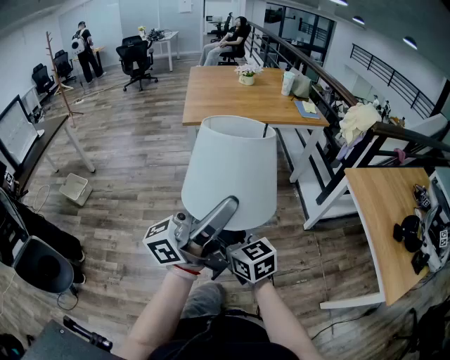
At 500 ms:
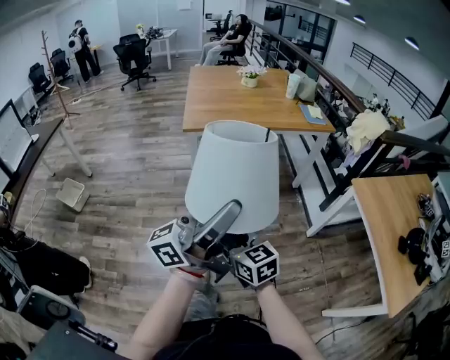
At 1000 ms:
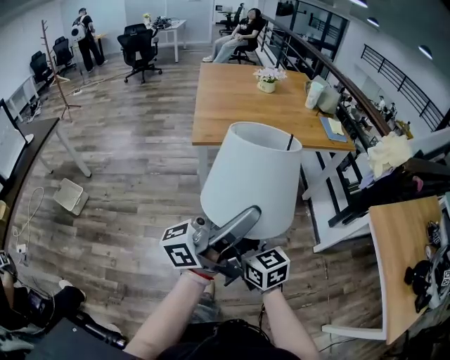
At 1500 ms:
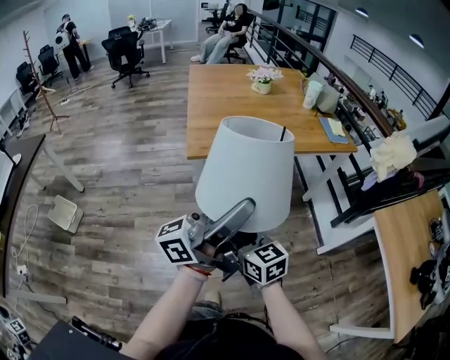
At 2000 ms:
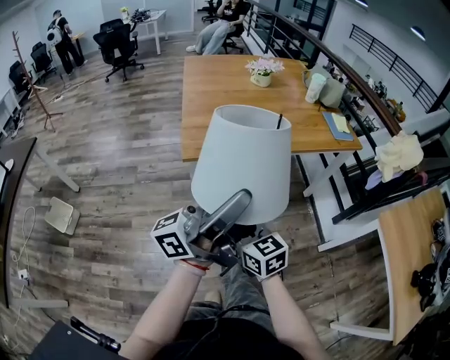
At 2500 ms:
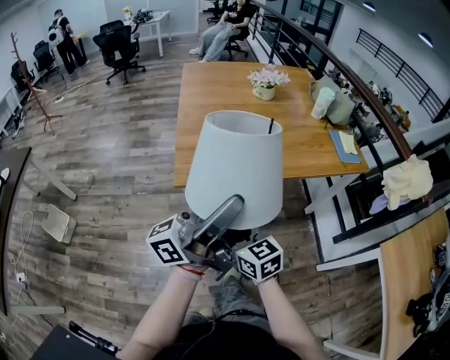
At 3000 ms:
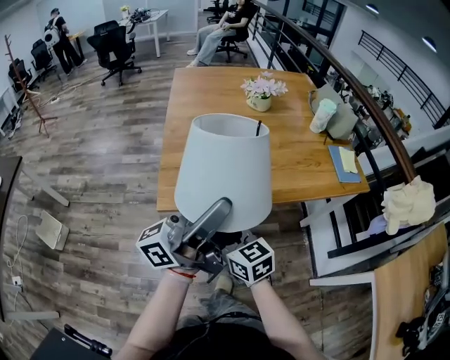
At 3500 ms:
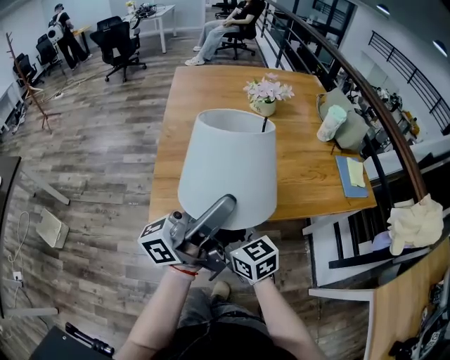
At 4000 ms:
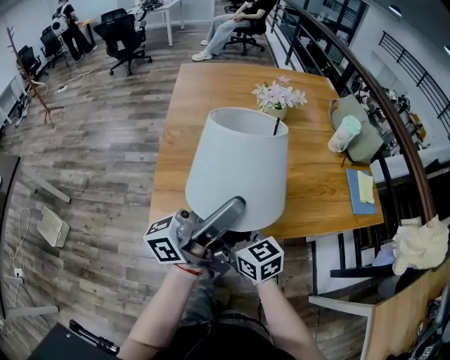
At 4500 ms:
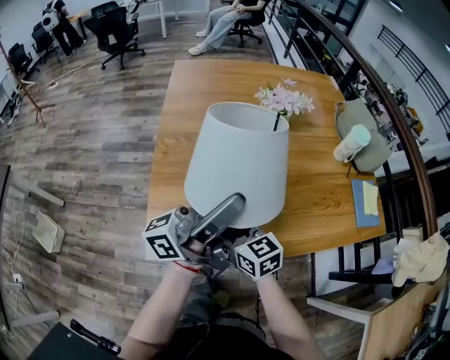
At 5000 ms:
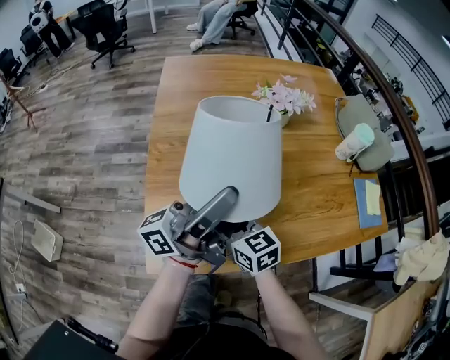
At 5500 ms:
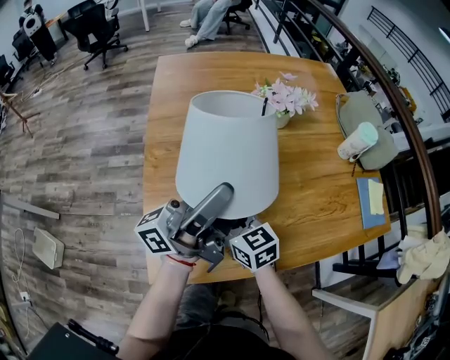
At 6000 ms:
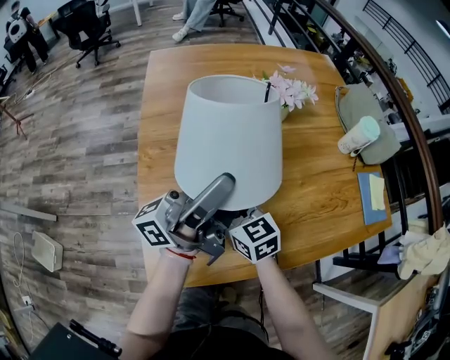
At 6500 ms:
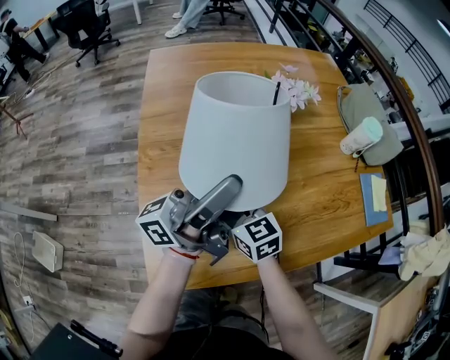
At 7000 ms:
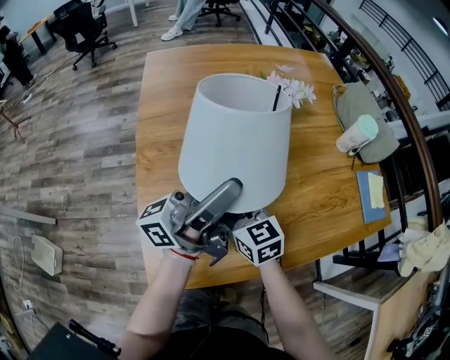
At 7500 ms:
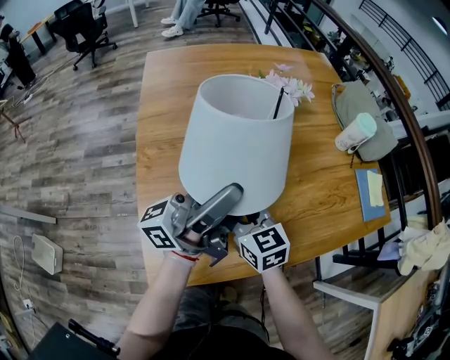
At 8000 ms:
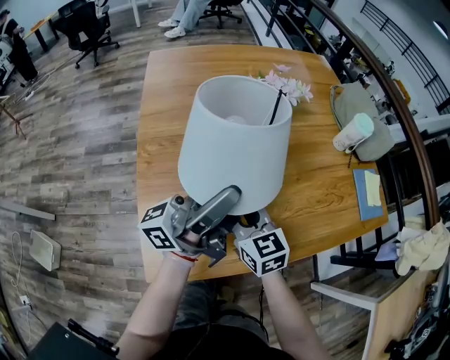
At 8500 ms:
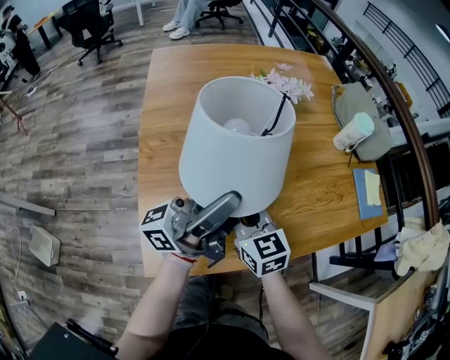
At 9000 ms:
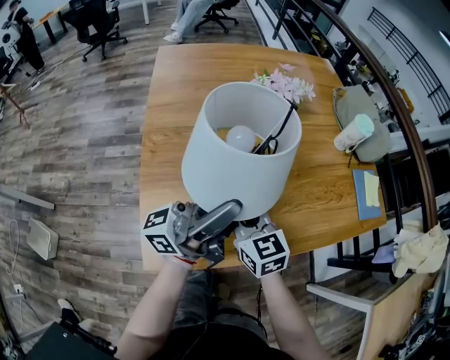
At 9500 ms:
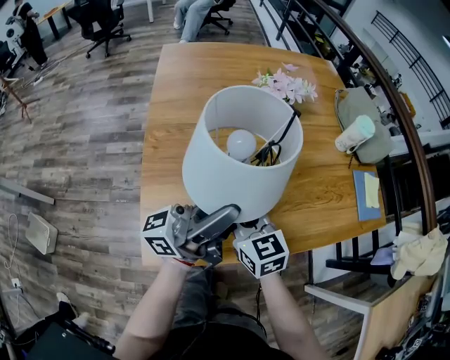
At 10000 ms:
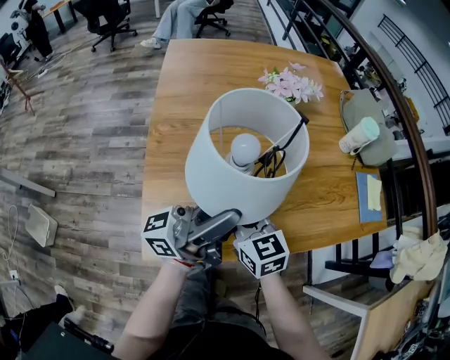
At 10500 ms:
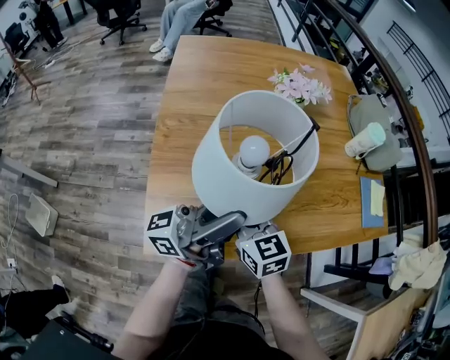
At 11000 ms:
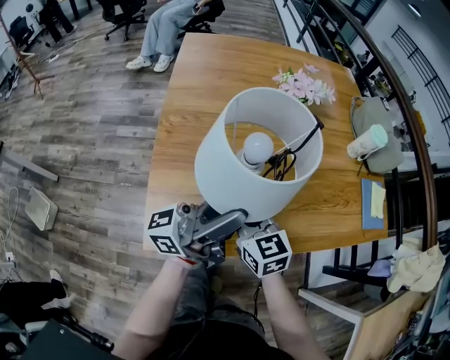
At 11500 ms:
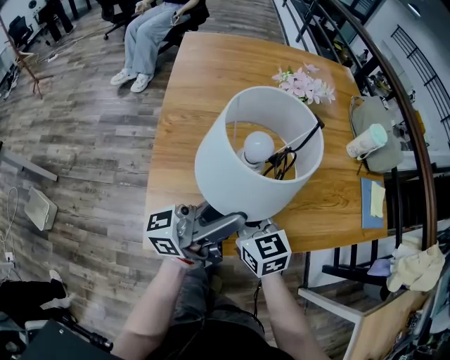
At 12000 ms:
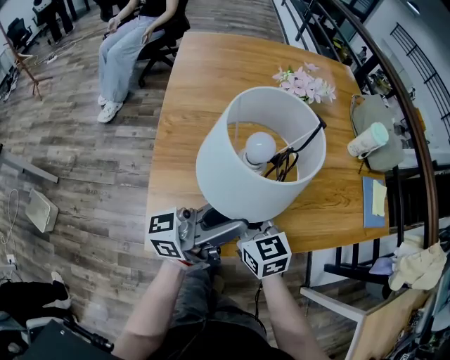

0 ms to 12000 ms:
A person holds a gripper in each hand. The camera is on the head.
0 ms to 2000 ms: The left gripper moves forward and to the left, about 40 cm. The right gripper is displaced forward by about 35 cm.
2000 ms to 4000 ms: Both grippers move forward, about 35 cm.
4000 ms to 6000 ms: Both grippers travel together forward, approximately 20 cm.
6000 ms to 8000 ms: The right gripper shifts by approximately 5 cm, and closes its fingers.
8000 ms to 10000 ms: The left gripper goes some 5 cm backward.
10000 ms to 12000 ms: The grippers stay close to where they were, moving slightly.

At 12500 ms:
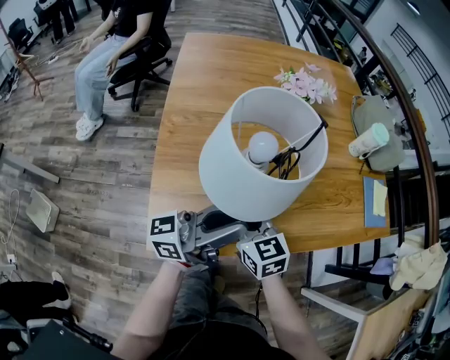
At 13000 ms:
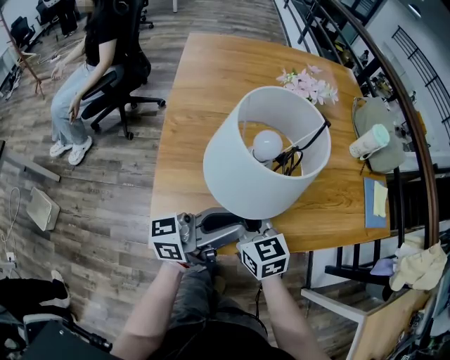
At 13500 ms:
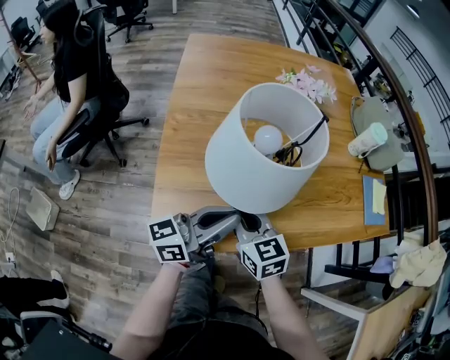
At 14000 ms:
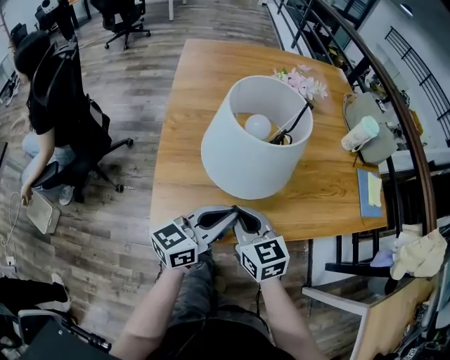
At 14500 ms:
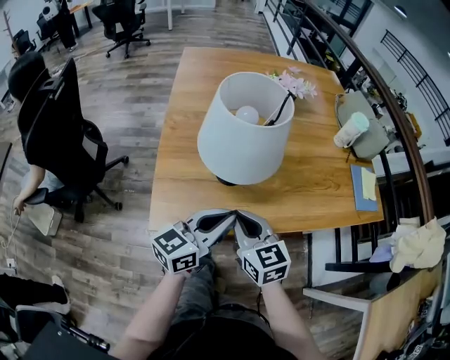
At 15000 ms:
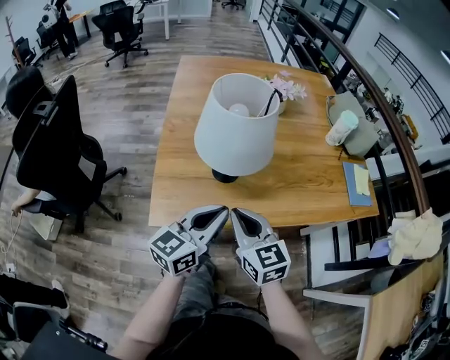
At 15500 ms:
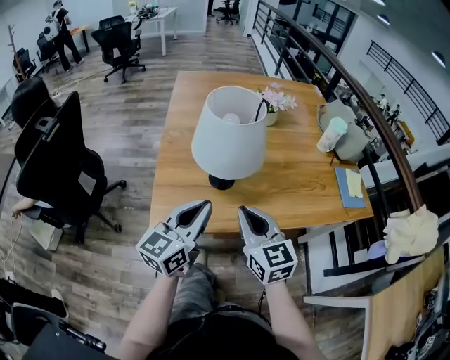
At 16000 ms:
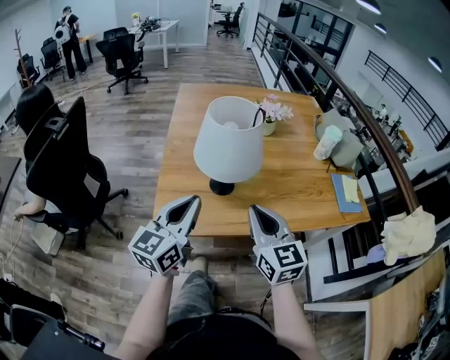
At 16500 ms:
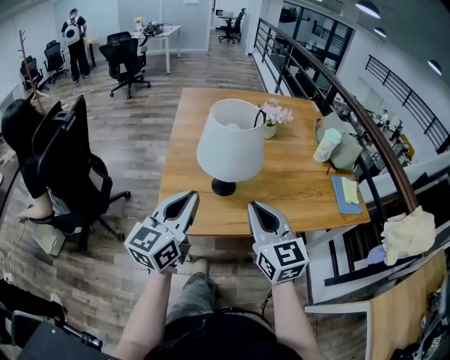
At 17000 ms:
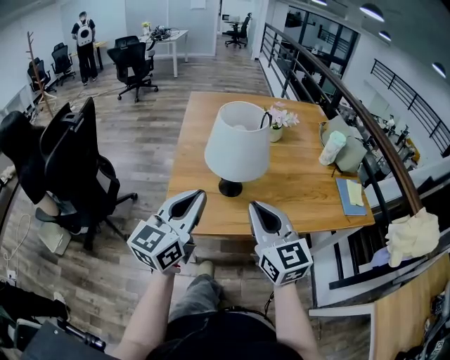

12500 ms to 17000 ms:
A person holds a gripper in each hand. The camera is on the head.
12500 ms to 14500 ms: The left gripper travels backward and downward by some 10 cm, turns by approximately 40 degrees, and closes up. The right gripper heads backward, covering about 10 cm.
14500 ms to 17000 ms: The right gripper heads upward, covering some 15 cm, and rotates approximately 20 degrees, while the left gripper is displaced upward and to the left by about 15 cm, and turns by roughly 30 degrees.

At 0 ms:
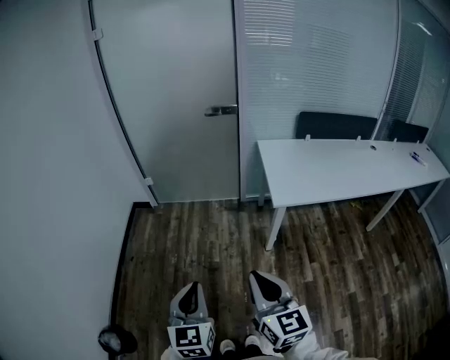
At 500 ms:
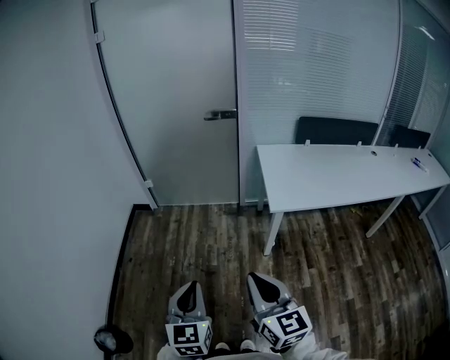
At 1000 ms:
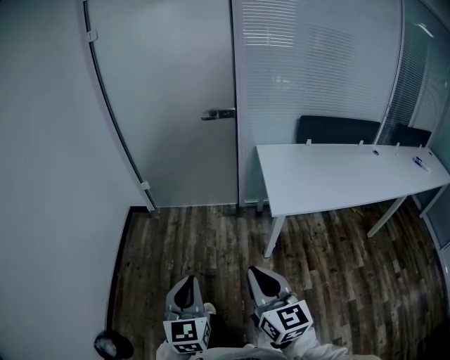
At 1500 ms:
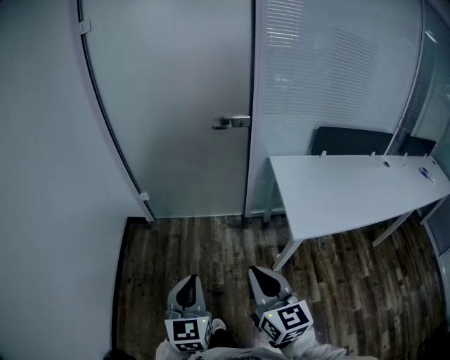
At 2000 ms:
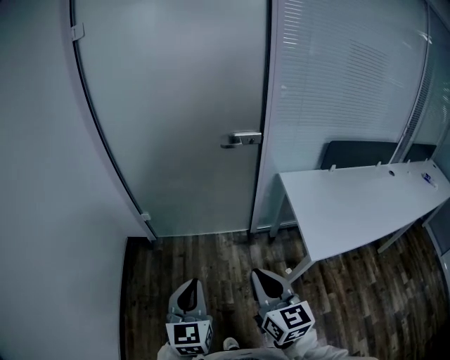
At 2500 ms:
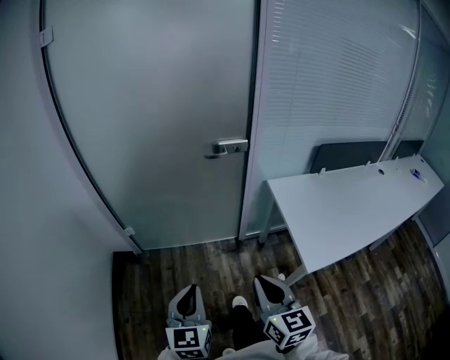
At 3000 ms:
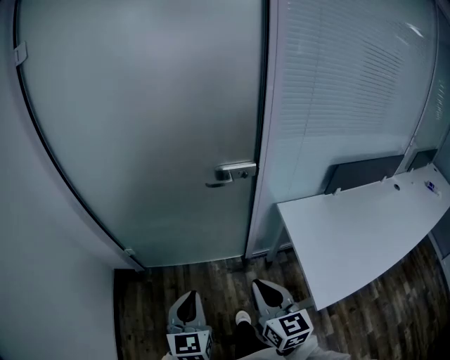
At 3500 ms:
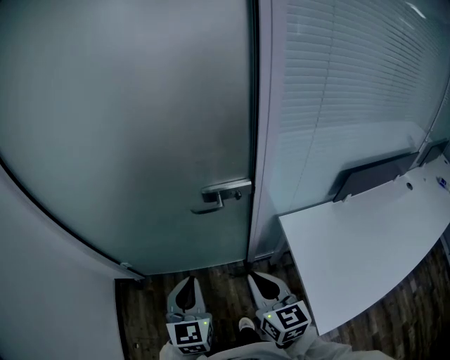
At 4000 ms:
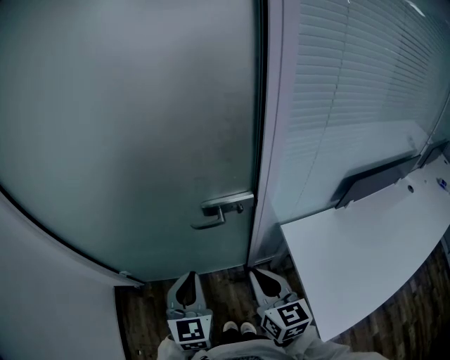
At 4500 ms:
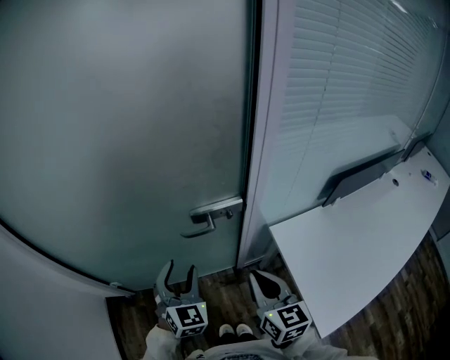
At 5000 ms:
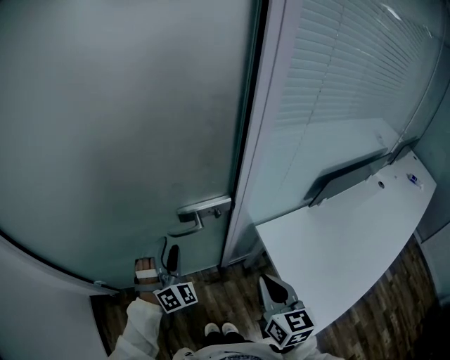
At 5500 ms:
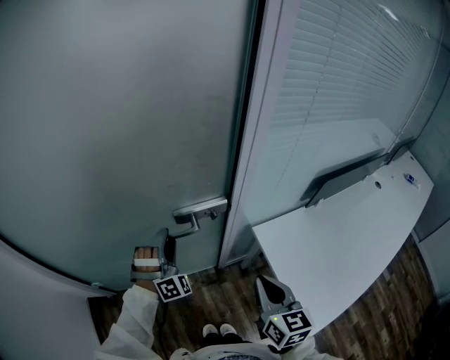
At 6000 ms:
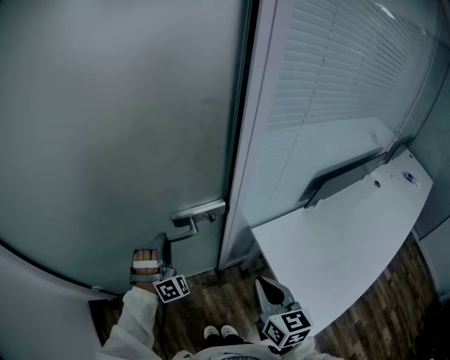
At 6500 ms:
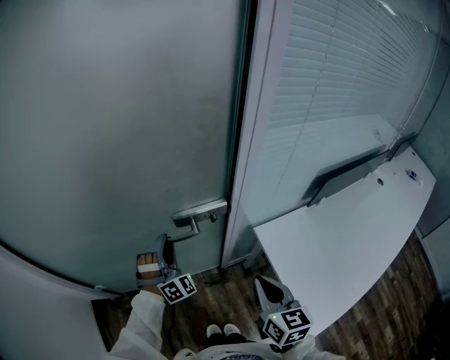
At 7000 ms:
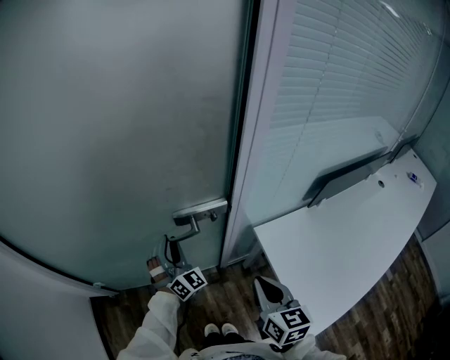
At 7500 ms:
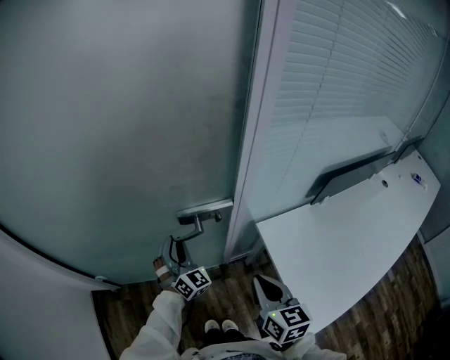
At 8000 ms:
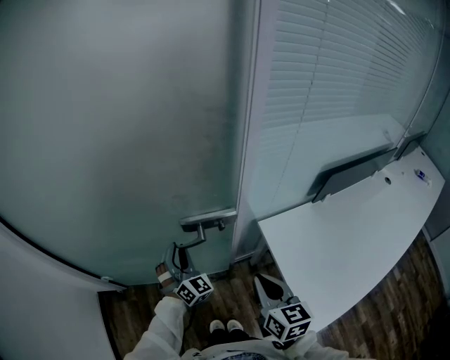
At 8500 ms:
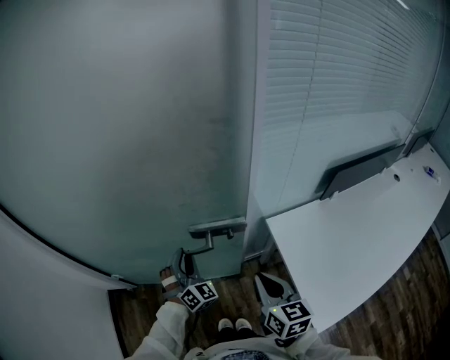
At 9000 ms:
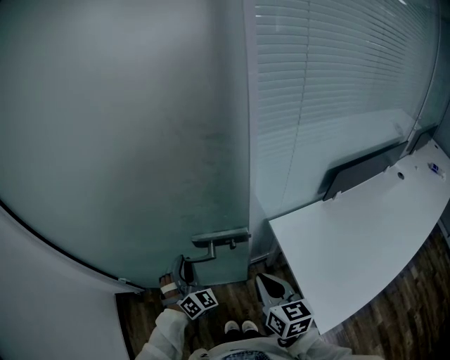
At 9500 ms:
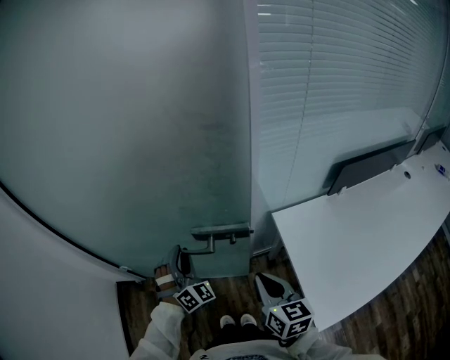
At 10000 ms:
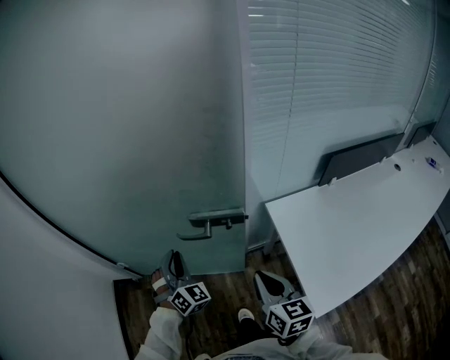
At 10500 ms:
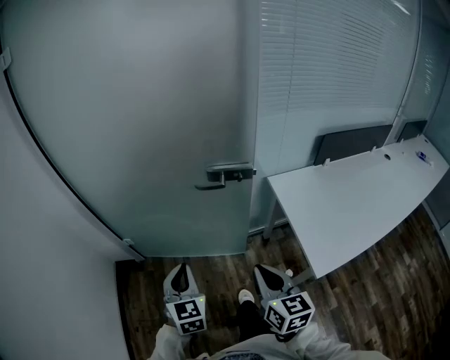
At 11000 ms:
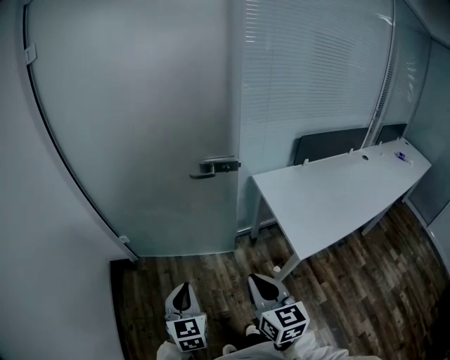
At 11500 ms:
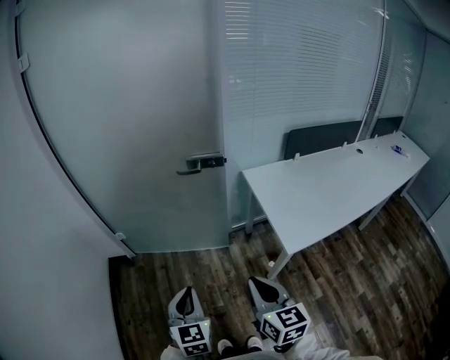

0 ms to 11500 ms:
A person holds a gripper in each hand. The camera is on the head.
0 ms to 2000 ms: The grippers both shift forward by some 35 cm.
2000 ms to 4000 ms: The pair of grippers is taken forward, some 50 cm.
4000 ms to 6000 ms: The left gripper travels forward and downward by about 20 cm, rolls clockwise, seen from behind, by some 70 degrees, and opens. The right gripper goes roughly 5 cm to the right.
6000 ms to 7500 ms: The left gripper changes its angle by about 40 degrees.
7500 ms to 9500 ms: The left gripper moves backward, roughly 10 cm.
9500 ms to 11500 ms: Both grippers travel together backward, about 40 cm. The left gripper rolls counterclockwise, seen from behind, by roughly 50 degrees, and closes up.
